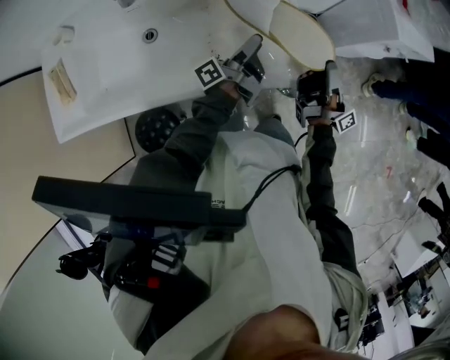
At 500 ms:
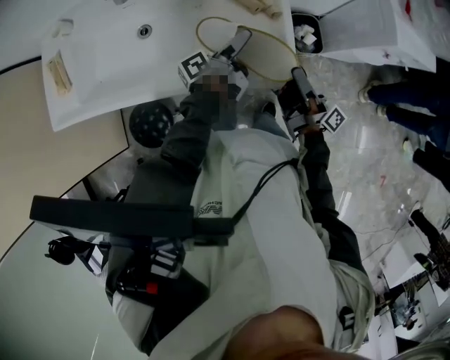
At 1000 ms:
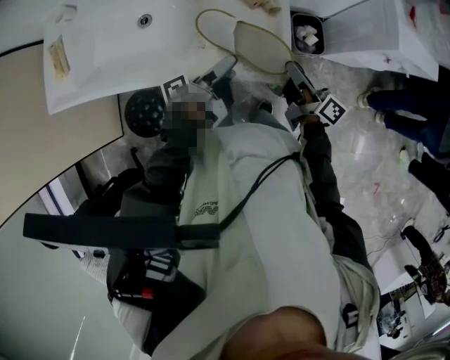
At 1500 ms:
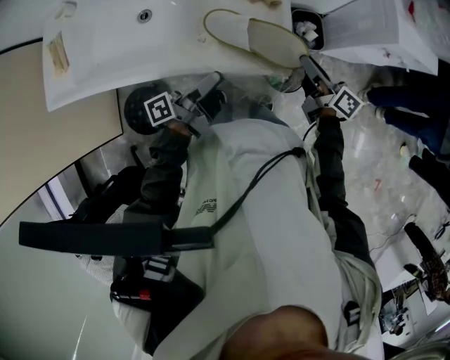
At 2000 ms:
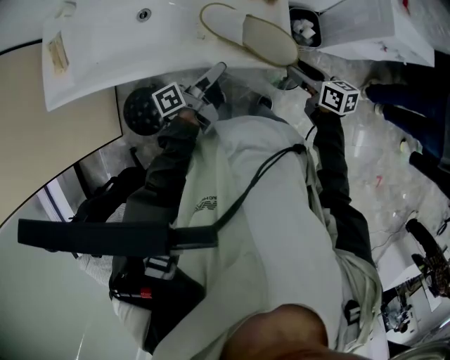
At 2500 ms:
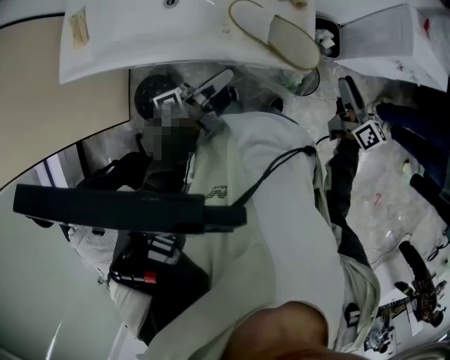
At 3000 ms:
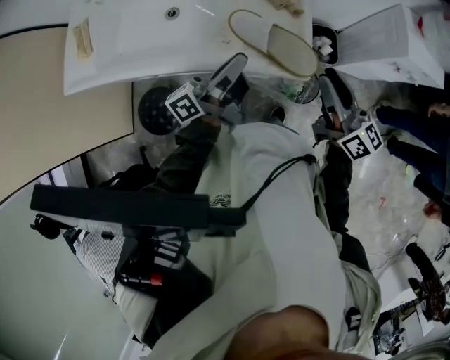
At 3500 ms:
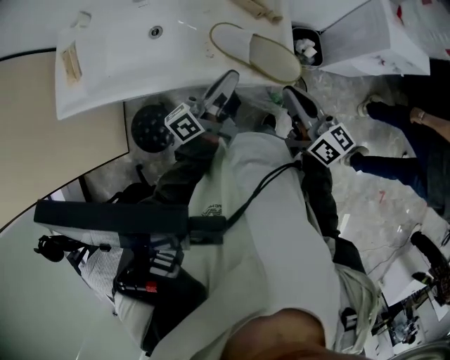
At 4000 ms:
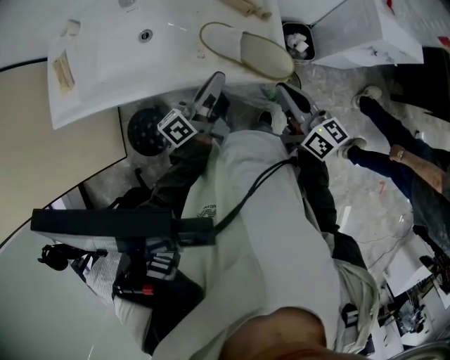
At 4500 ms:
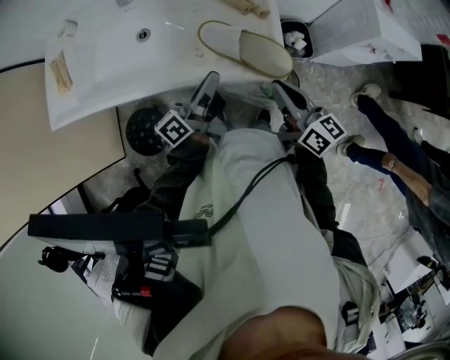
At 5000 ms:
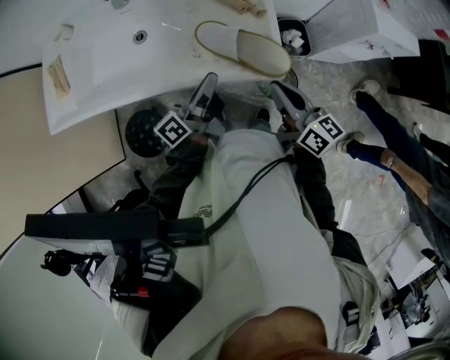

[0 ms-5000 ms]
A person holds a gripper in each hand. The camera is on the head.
0 ms to 2500 ms: The right gripper goes downward and returns, some 15 cm each way, points its fingers roughly 40 degrees further downward, and opens.
2500 ms to 5000 ms: The right gripper changes place by about 15 cm, and closes.

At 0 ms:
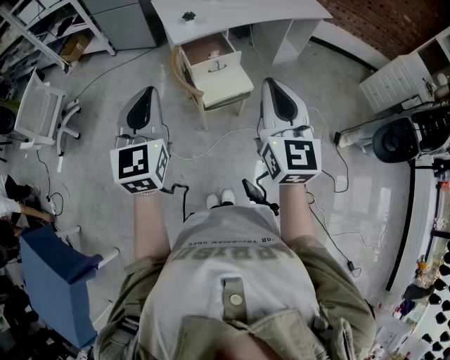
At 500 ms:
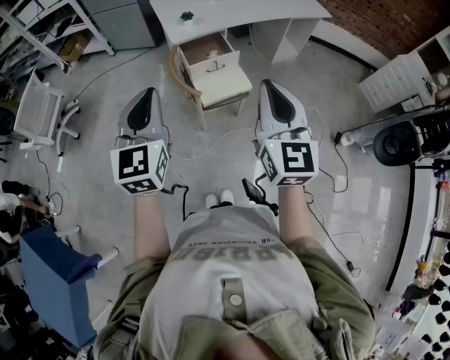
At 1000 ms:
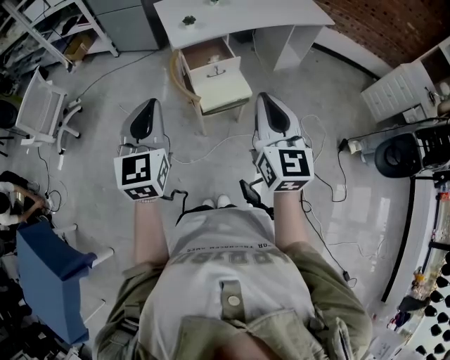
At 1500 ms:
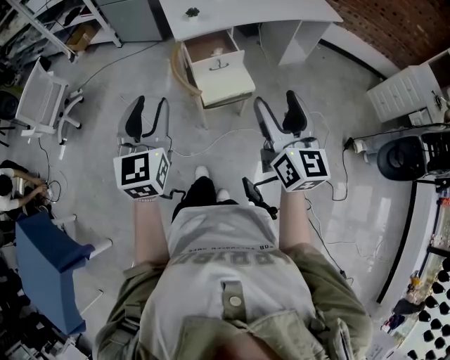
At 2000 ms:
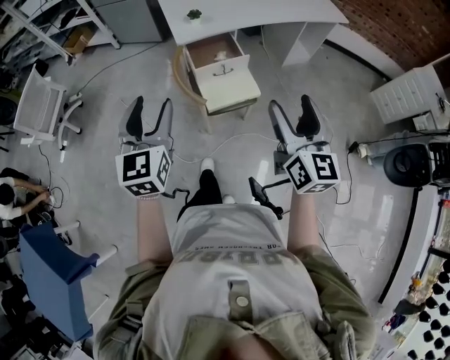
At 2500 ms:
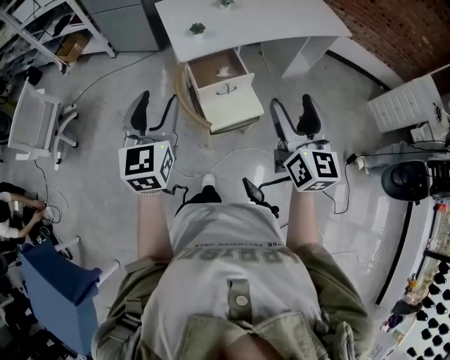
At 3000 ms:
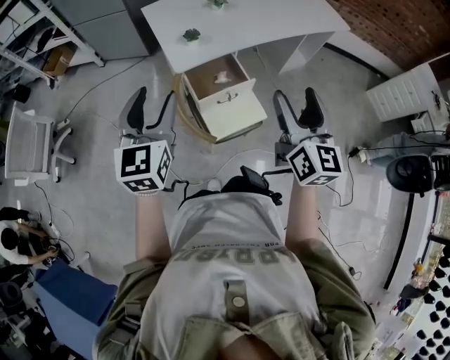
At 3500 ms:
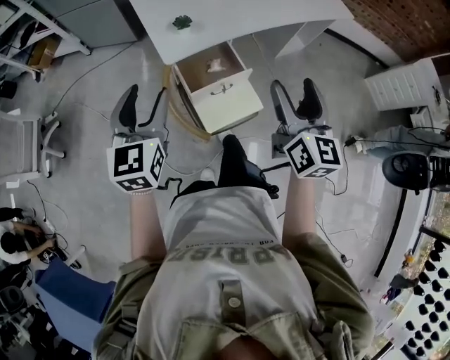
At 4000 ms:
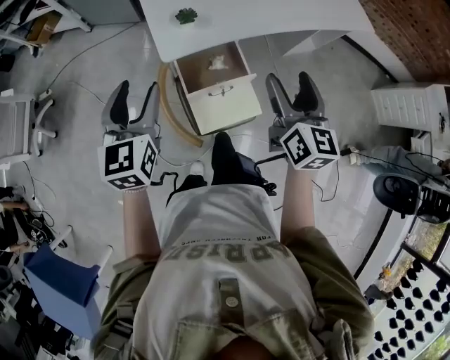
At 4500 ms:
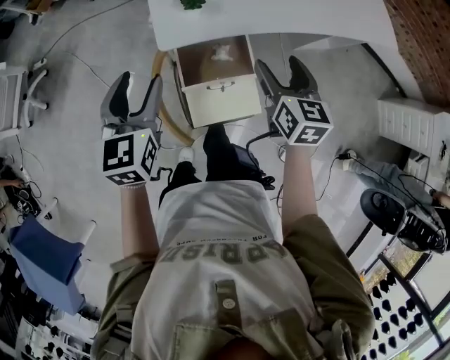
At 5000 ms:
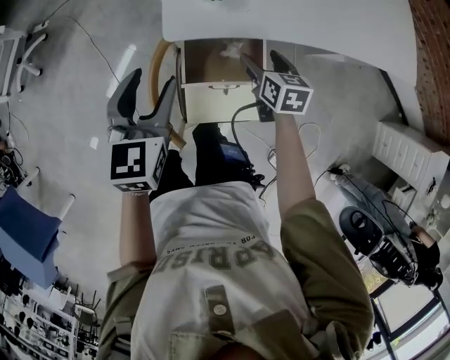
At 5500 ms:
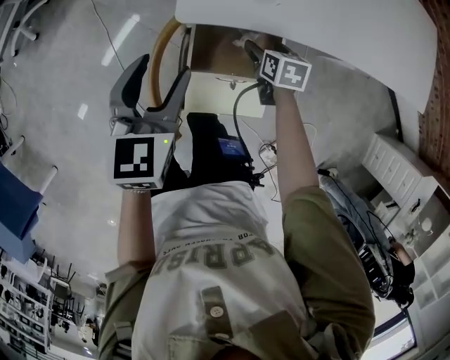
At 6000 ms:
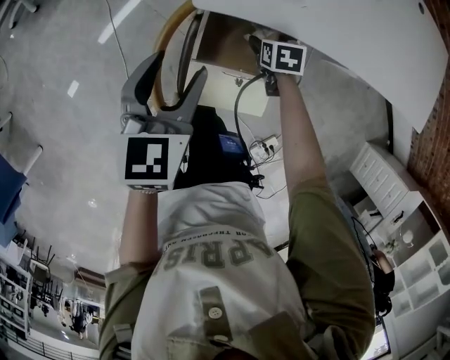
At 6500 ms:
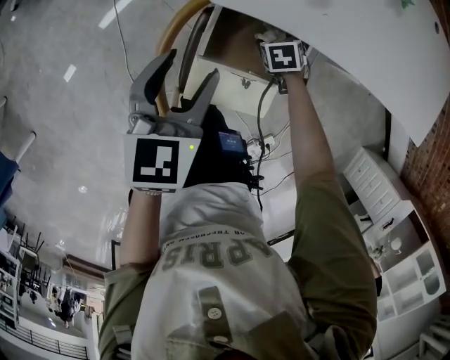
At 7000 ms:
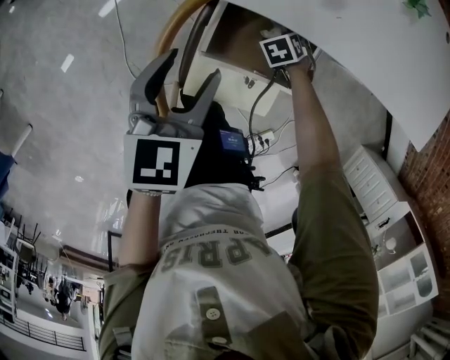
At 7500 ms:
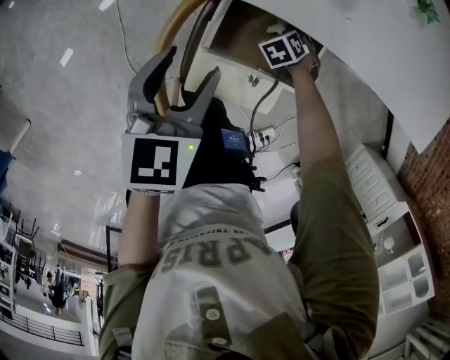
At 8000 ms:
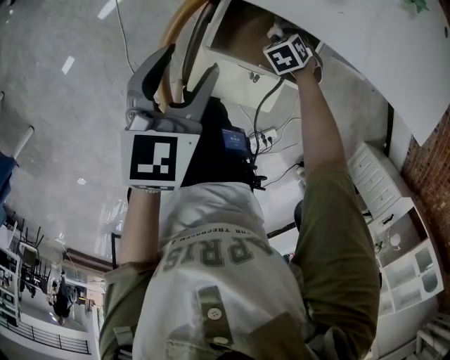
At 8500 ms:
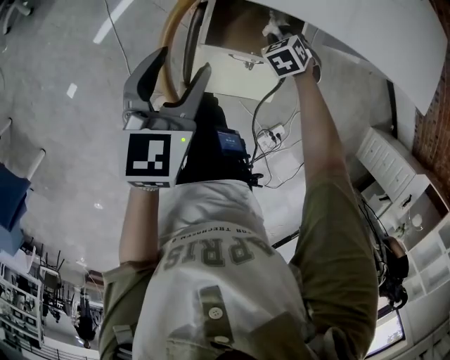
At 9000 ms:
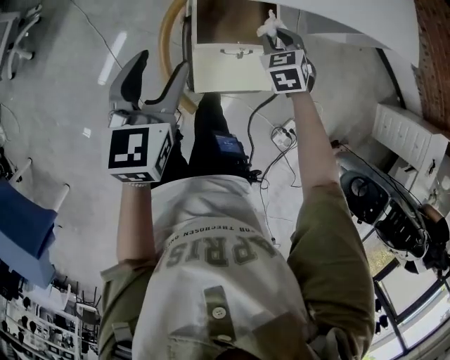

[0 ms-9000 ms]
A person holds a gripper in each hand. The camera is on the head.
0 ms to 2000 ms: The left gripper heads forward and downward, covering some 10 cm, and opens its fingers. The right gripper goes about 15 cm downward, forward and to the right, and opens.
2000 ms to 4500 ms: The right gripper goes some 50 cm forward and downward, and swivels approximately 30 degrees. Meanwhile the left gripper travels forward by some 40 cm.
4500 ms to 7000 ms: The right gripper heads downward, covering roughly 40 cm, and points its fingers some 50 degrees further downward. The left gripper is displaced downward by about 15 cm, and swivels roughly 20 degrees.
7000 ms to 9000 ms: The left gripper goes about 10 cm upward, while the right gripper goes roughly 25 cm upward, angles its fingers upward, by roughly 30 degrees, and closes its fingers.

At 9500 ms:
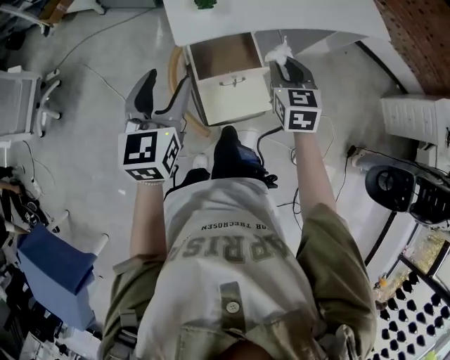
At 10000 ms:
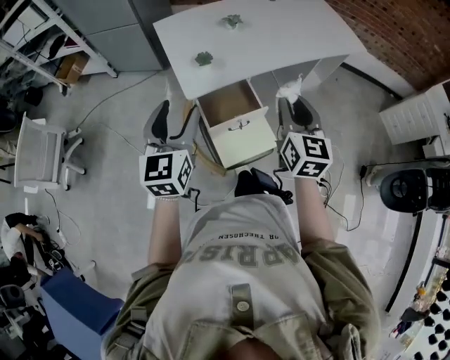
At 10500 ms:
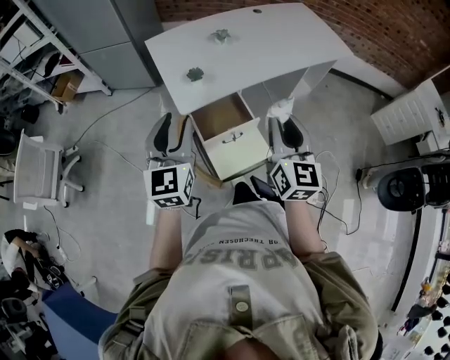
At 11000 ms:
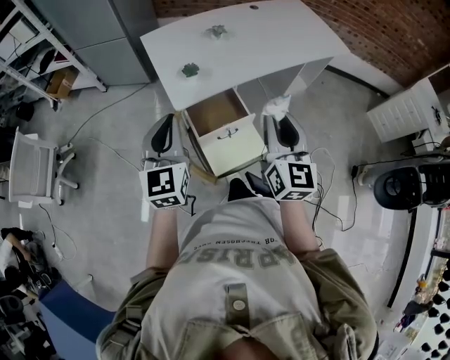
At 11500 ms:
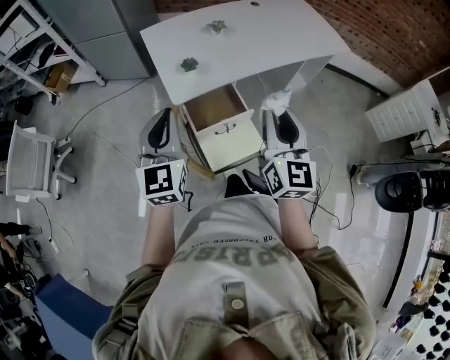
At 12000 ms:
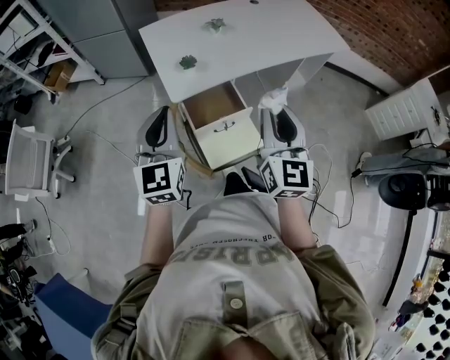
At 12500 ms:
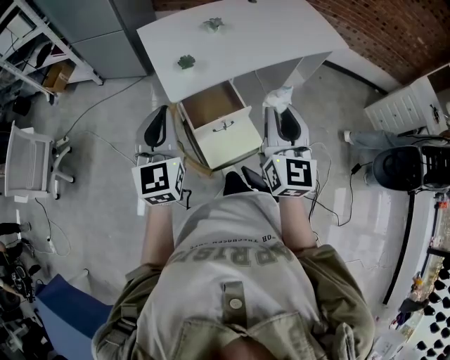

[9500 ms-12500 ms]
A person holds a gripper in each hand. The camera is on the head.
9500 ms to 11000 ms: The left gripper travels upward by approximately 10 cm, and closes, while the right gripper heads upward and backward, covering some 20 cm, and tilts its fingers some 30 degrees upward.
11000 ms to 12500 ms: The grippers make only small movements.

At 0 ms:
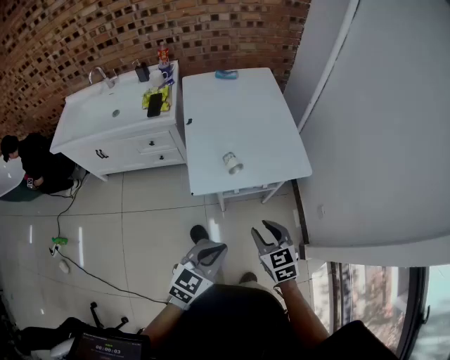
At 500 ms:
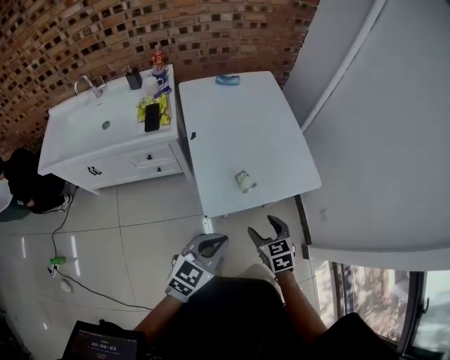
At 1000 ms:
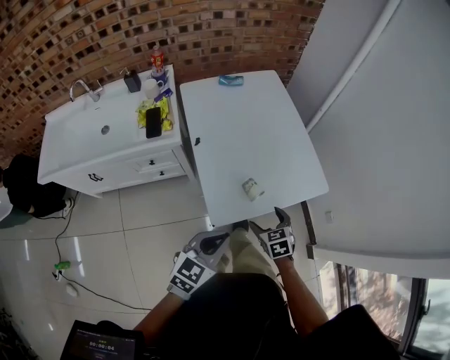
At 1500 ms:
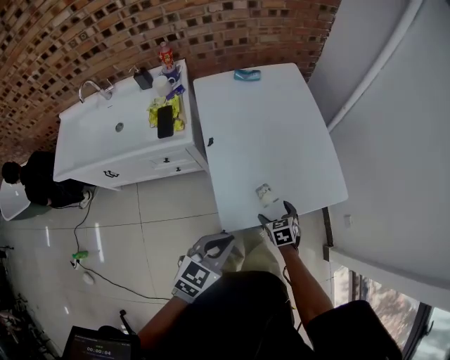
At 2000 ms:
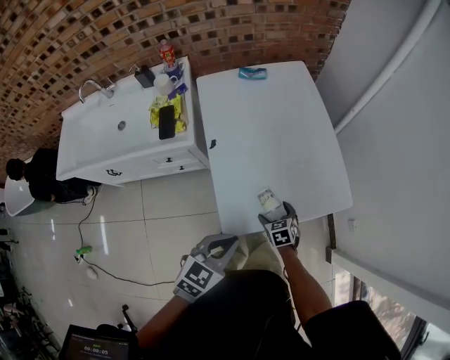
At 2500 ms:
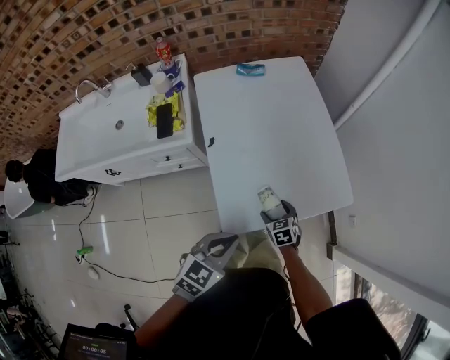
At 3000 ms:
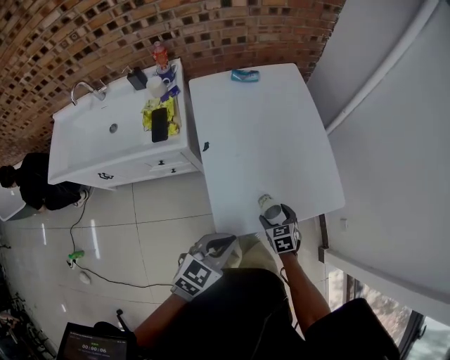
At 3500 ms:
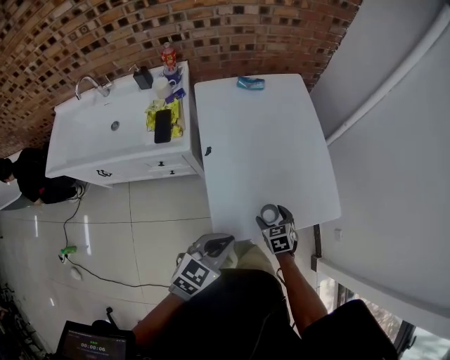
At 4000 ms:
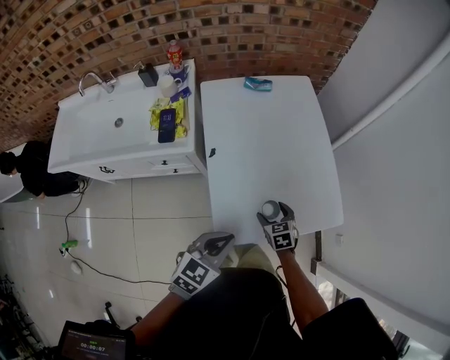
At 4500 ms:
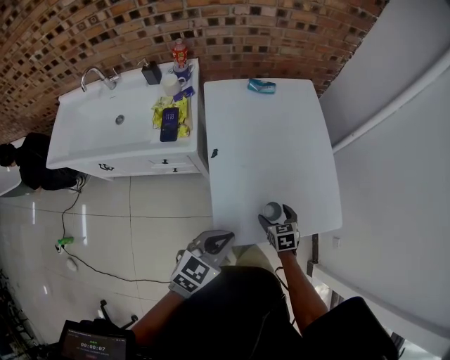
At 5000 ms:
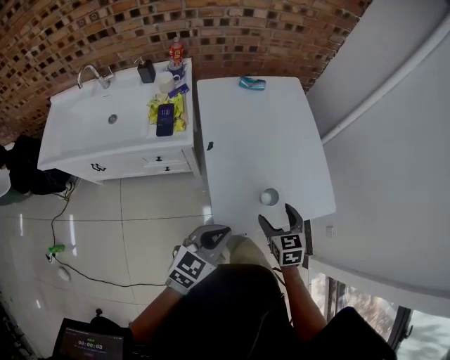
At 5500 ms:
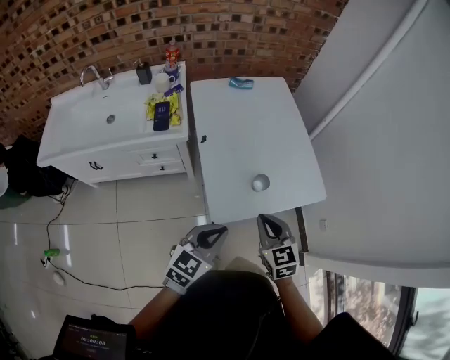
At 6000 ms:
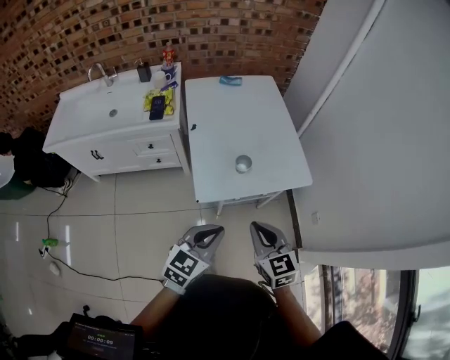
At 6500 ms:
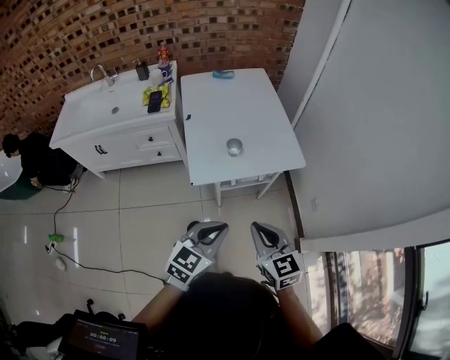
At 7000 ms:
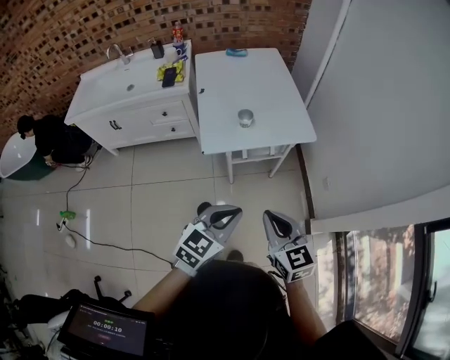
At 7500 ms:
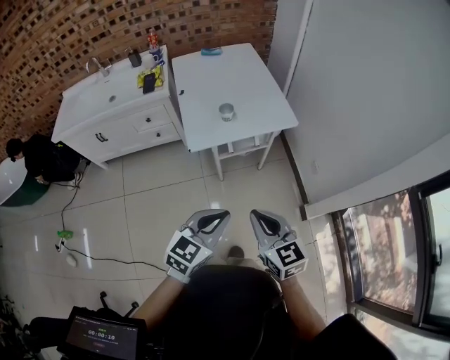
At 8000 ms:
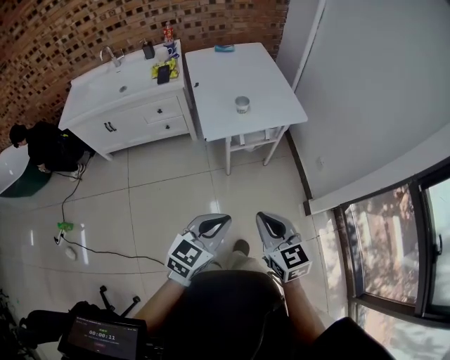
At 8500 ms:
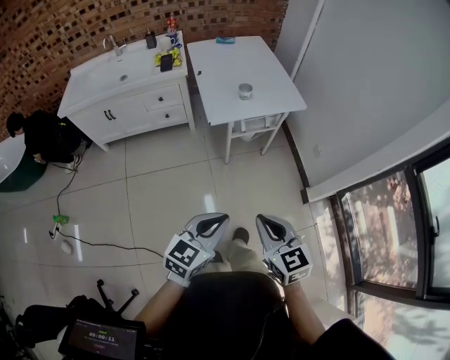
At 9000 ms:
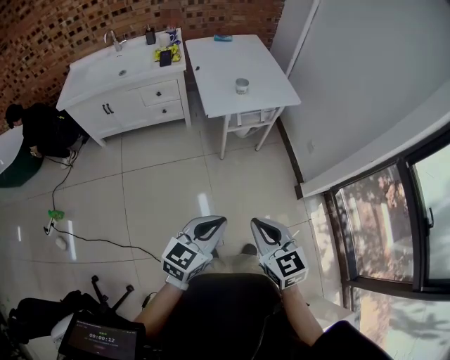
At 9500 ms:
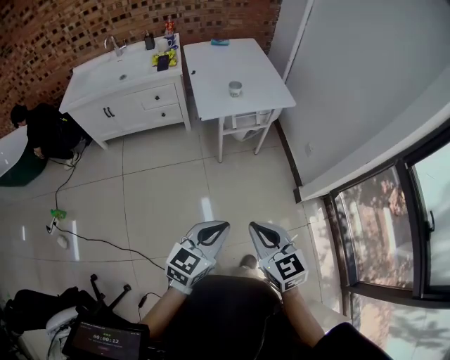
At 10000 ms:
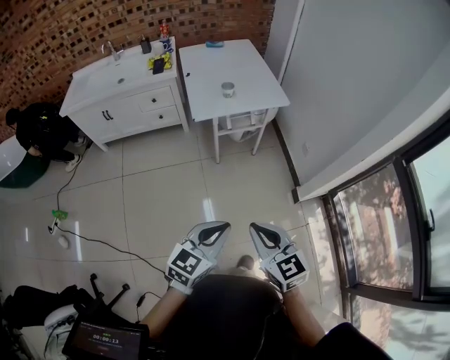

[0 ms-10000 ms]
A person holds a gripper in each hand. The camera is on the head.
0 ms to 2000 ms: The right gripper moves forward, downward and to the left, approximately 35 cm, rotates approximately 20 degrees, and opens; the left gripper travels forward and to the left by approximately 25 cm.
2000 ms to 4000 ms: The right gripper shifts roughly 10 cm forward and upward.
4000 ms to 6000 ms: The left gripper travels backward and to the right by about 20 cm; the right gripper shifts approximately 35 cm backward and upward, rotates about 30 degrees, and closes.
6000 ms to 8000 ms: The grippers both shift backward by about 30 cm.
8000 ms to 10000 ms: The right gripper moves backward, approximately 15 cm; the left gripper is displaced backward and to the right by about 15 cm.
